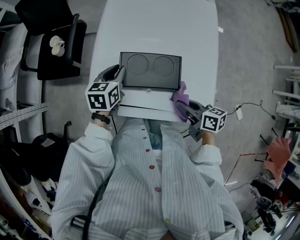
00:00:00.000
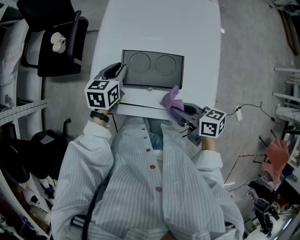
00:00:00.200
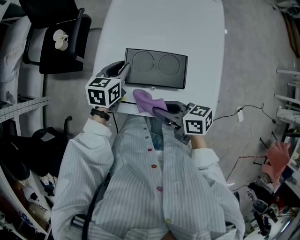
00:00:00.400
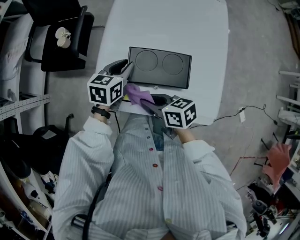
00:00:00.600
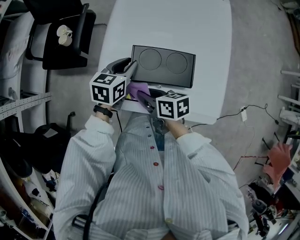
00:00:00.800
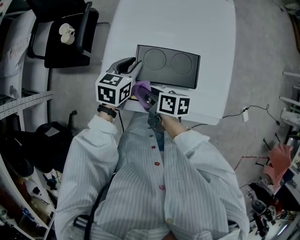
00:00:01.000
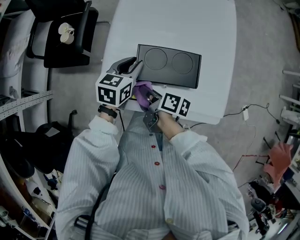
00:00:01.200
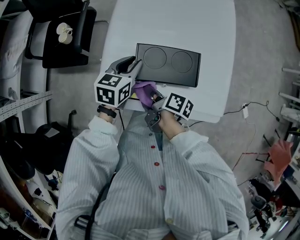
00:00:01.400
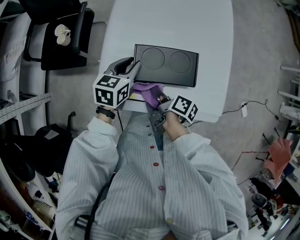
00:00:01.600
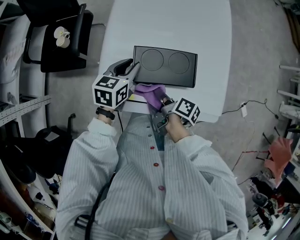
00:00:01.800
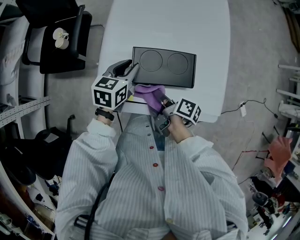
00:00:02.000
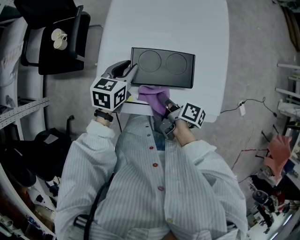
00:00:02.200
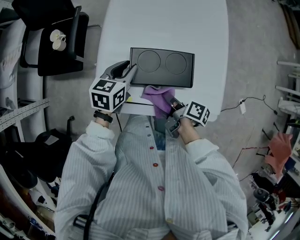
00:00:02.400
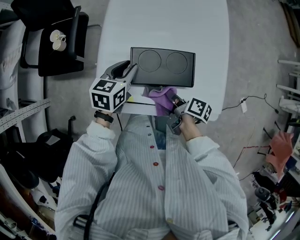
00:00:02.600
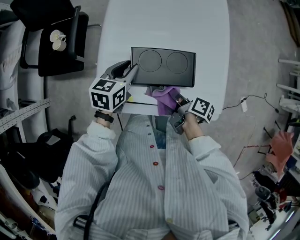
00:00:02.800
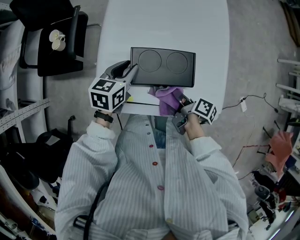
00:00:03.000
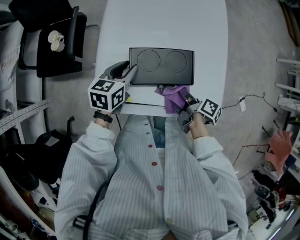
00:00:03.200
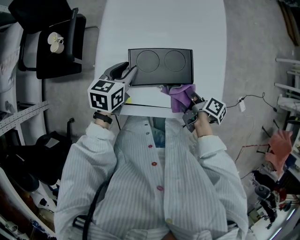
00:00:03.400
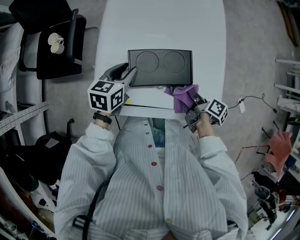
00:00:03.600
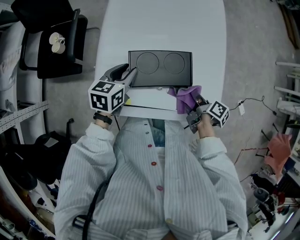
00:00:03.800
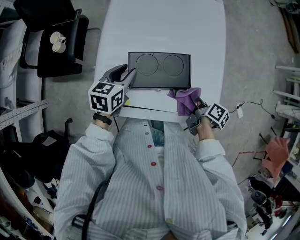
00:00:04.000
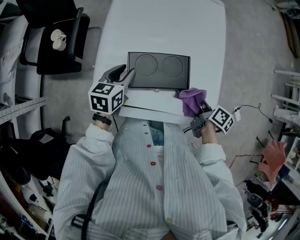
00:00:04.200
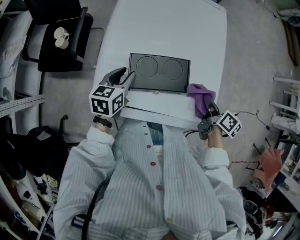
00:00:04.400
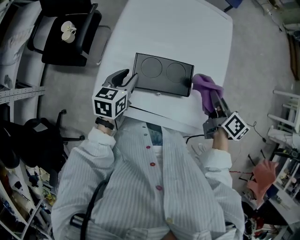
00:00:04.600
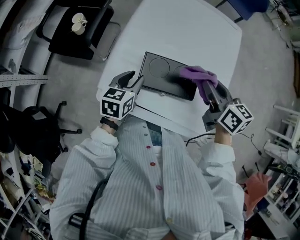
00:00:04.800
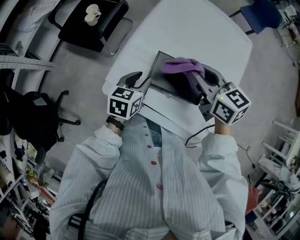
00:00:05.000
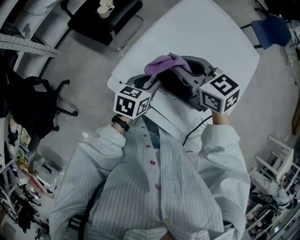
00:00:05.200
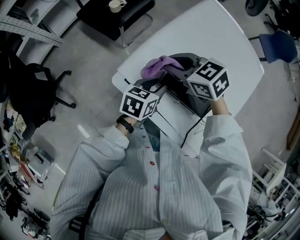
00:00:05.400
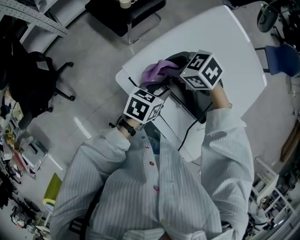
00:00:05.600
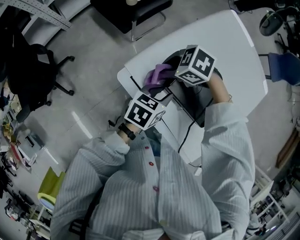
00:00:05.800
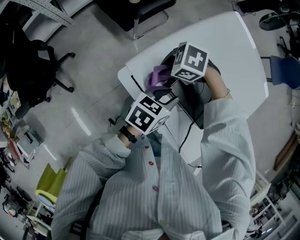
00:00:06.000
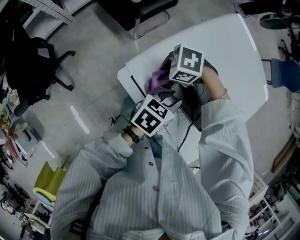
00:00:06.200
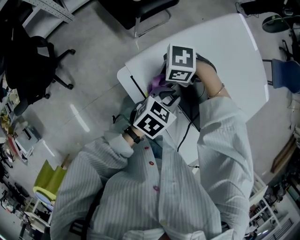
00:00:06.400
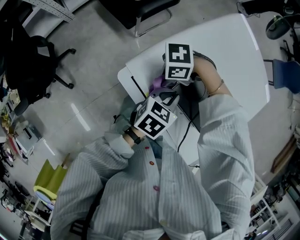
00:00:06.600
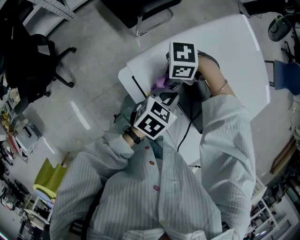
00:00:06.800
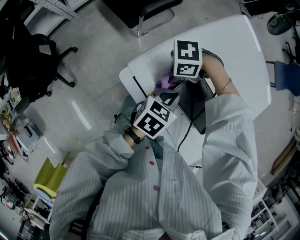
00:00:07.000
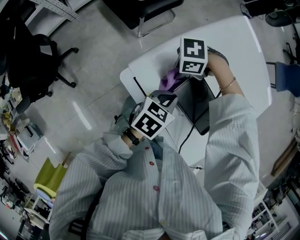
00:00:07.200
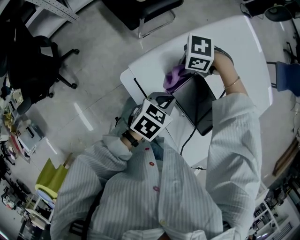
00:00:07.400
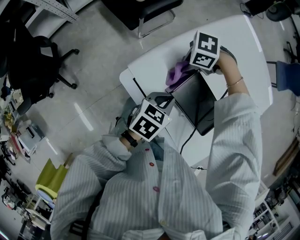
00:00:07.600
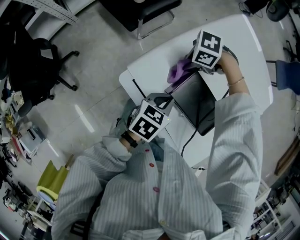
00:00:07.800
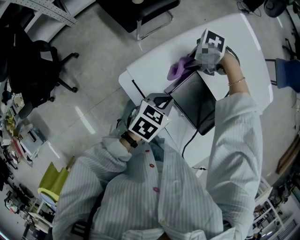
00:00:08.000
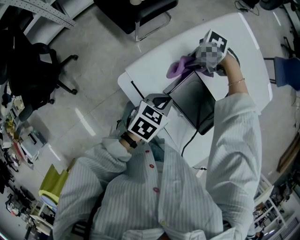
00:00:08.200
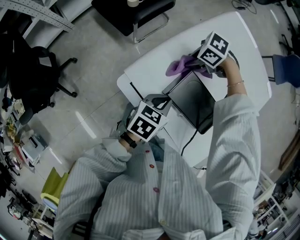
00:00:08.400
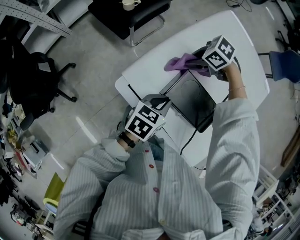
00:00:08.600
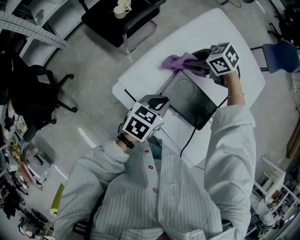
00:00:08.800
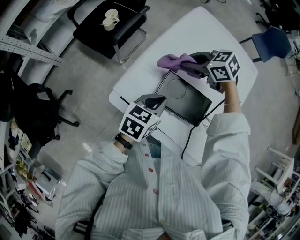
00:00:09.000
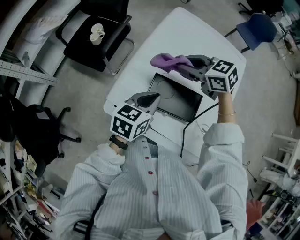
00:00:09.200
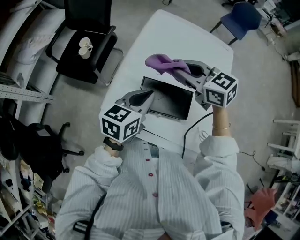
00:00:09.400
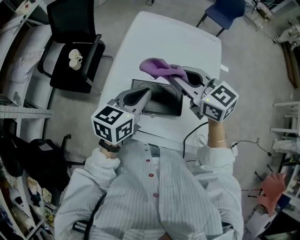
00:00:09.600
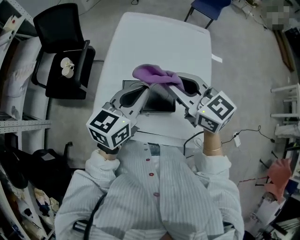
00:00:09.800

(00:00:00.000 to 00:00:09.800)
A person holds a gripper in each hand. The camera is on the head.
00:00:00.000 - 00:00:01.400: The right gripper moves to the left and forward, approximately 20 cm, and turns by approximately 40 degrees.
00:00:01.400 - 00:00:02.800: The right gripper shifts approximately 10 cm to the right.
00:00:02.800 - 00:00:04.200: The right gripper heads to the right, covering about 15 cm.
00:00:04.200 - 00:00:05.600: The right gripper reaches about 15 cm upward, then returns, and changes its angle by approximately 130 degrees, while the left gripper shifts by roughly 5 cm, and rotates roughly 30 degrees.
00:00:05.600 - 00:00:07.000: The left gripper closes; the right gripper is displaced downward by some 5 cm, and swivels about 50 degrees.
00:00:07.000 - 00:00:08.400: The right gripper changes place by about 15 cm, and turns by roughly 30 degrees.
00:00:08.400 - 00:00:09.800: The grippers both shift upward by about 25 cm. The right gripper tilts its fingers some 40 degrees upward, while the left gripper tilts its fingers about 30 degrees upward.

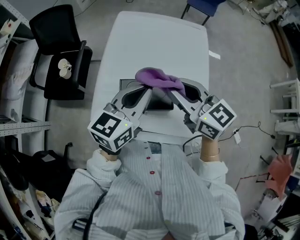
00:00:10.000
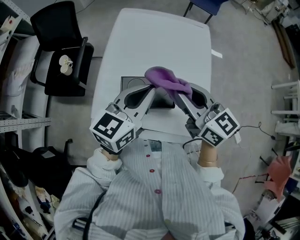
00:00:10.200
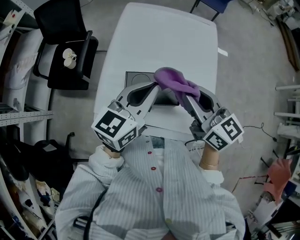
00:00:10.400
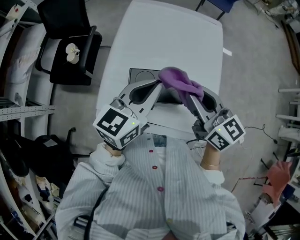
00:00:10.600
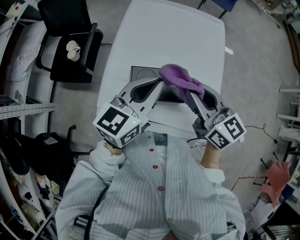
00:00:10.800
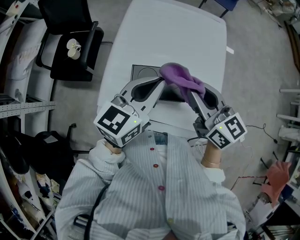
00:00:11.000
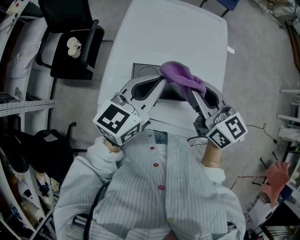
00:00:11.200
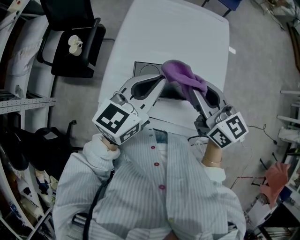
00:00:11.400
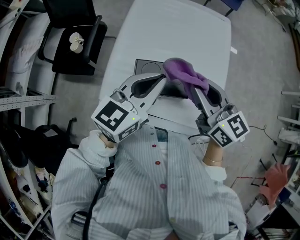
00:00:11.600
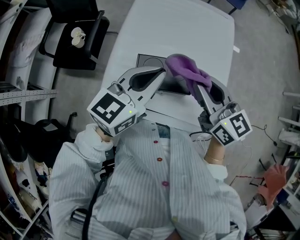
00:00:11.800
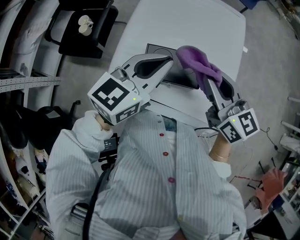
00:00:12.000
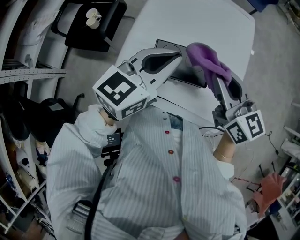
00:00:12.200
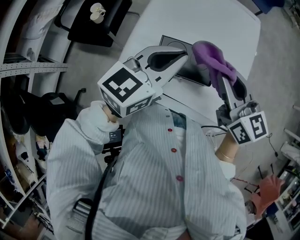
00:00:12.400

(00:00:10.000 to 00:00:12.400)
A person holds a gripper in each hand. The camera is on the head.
00:00:10.000 - 00:00:12.400: The grippers move only a little.

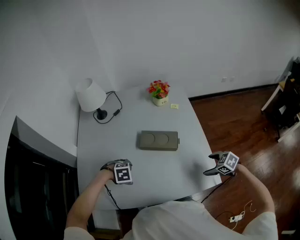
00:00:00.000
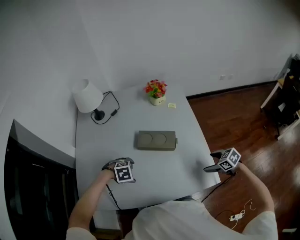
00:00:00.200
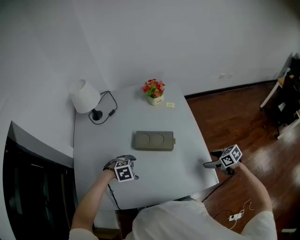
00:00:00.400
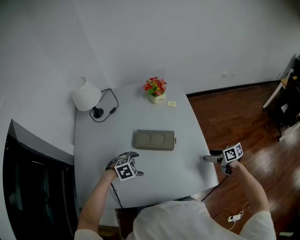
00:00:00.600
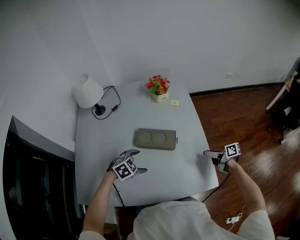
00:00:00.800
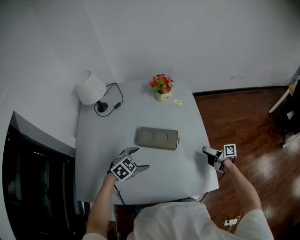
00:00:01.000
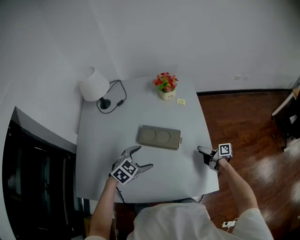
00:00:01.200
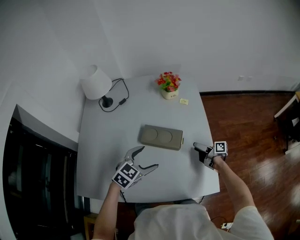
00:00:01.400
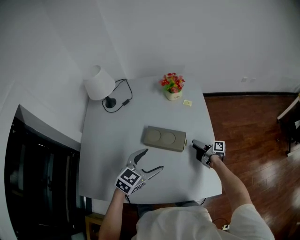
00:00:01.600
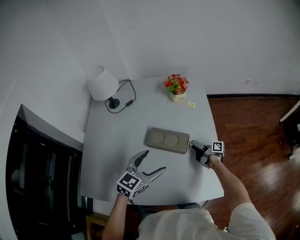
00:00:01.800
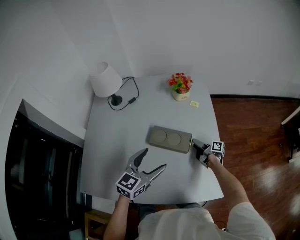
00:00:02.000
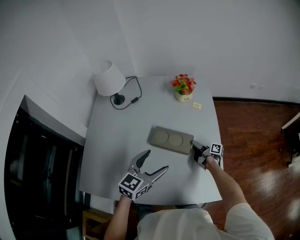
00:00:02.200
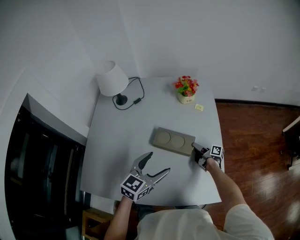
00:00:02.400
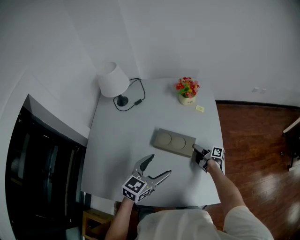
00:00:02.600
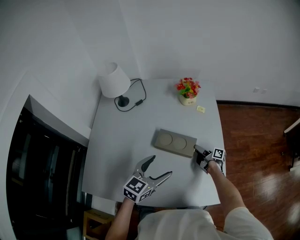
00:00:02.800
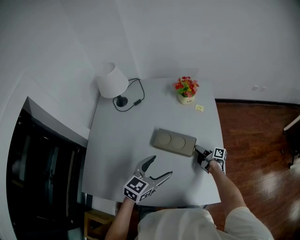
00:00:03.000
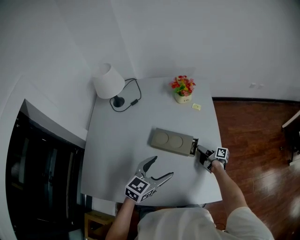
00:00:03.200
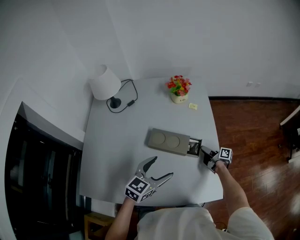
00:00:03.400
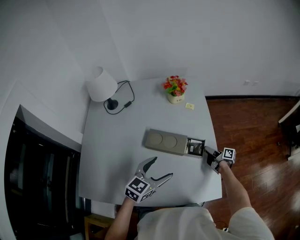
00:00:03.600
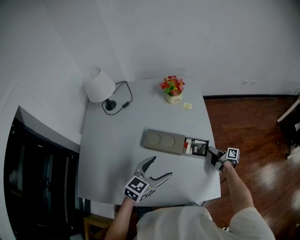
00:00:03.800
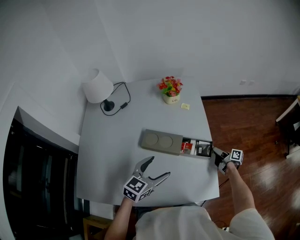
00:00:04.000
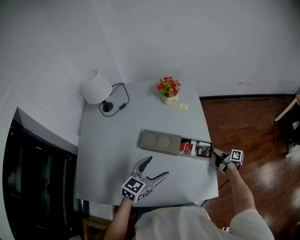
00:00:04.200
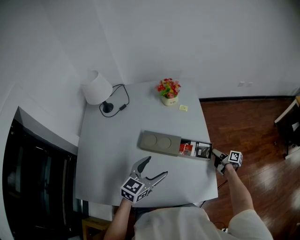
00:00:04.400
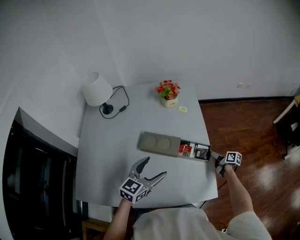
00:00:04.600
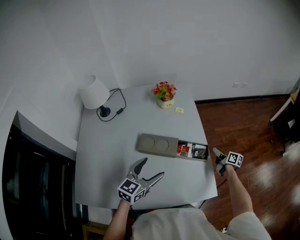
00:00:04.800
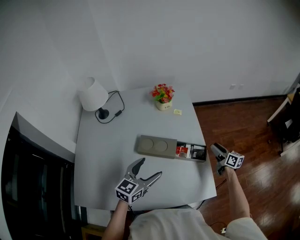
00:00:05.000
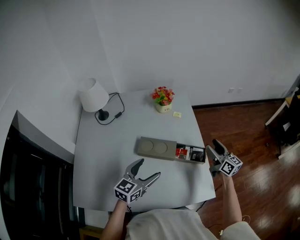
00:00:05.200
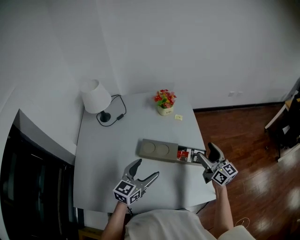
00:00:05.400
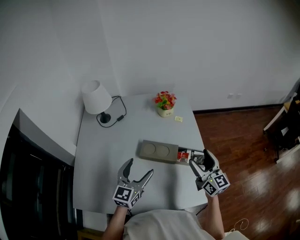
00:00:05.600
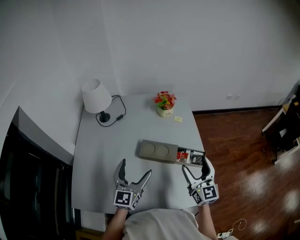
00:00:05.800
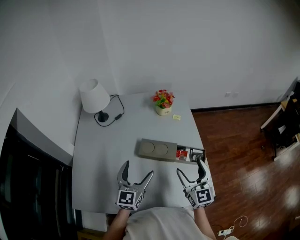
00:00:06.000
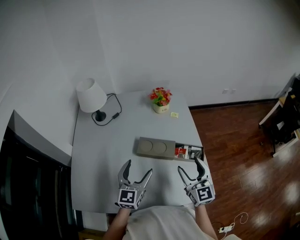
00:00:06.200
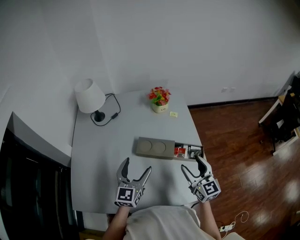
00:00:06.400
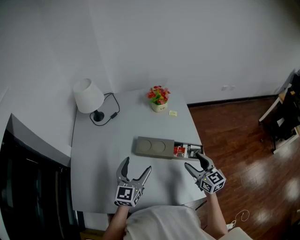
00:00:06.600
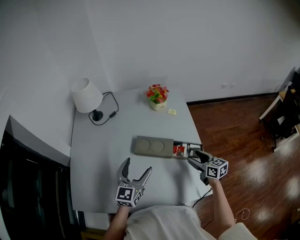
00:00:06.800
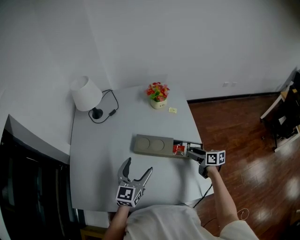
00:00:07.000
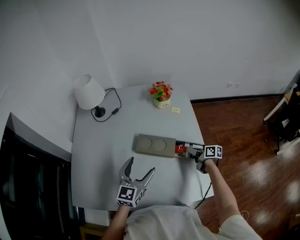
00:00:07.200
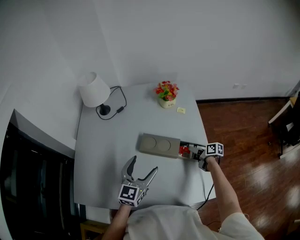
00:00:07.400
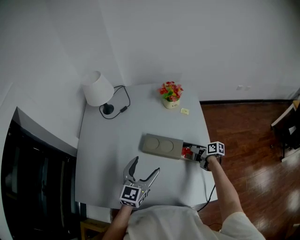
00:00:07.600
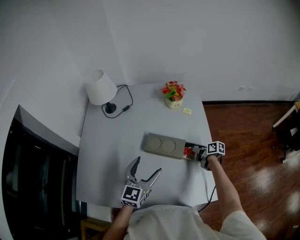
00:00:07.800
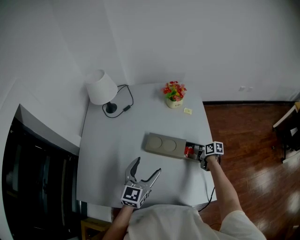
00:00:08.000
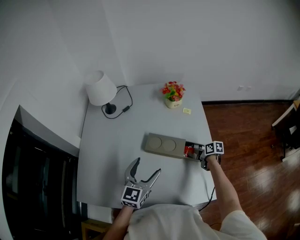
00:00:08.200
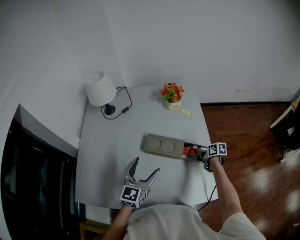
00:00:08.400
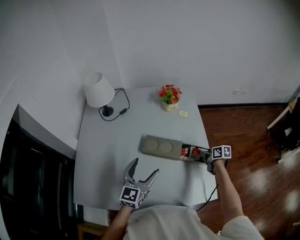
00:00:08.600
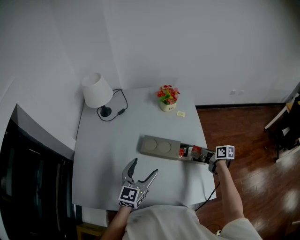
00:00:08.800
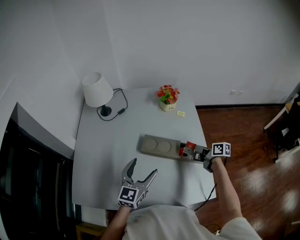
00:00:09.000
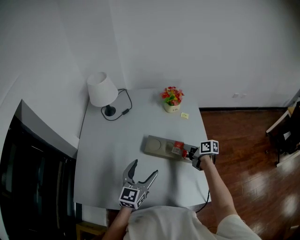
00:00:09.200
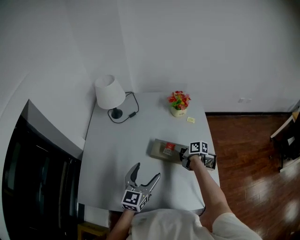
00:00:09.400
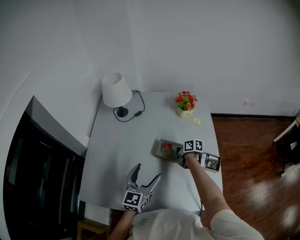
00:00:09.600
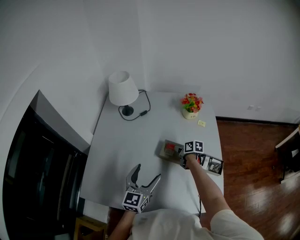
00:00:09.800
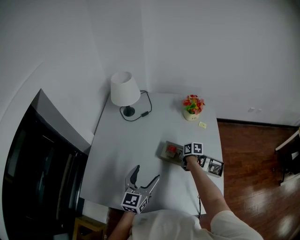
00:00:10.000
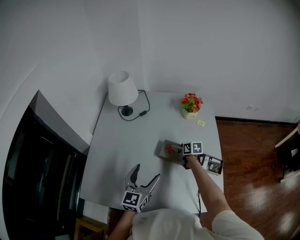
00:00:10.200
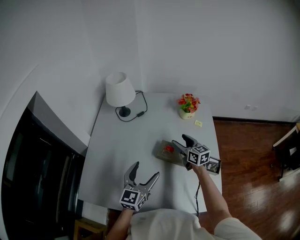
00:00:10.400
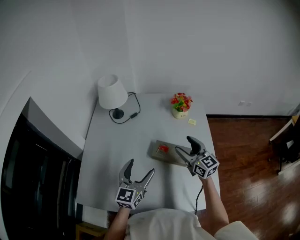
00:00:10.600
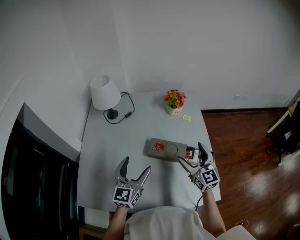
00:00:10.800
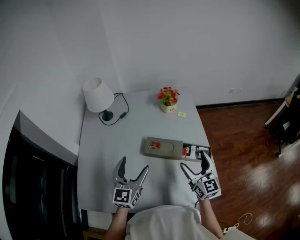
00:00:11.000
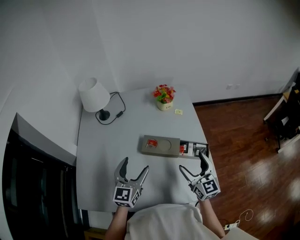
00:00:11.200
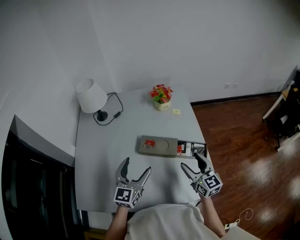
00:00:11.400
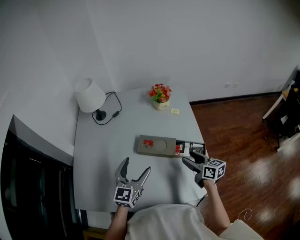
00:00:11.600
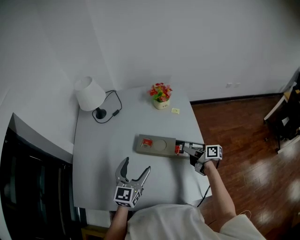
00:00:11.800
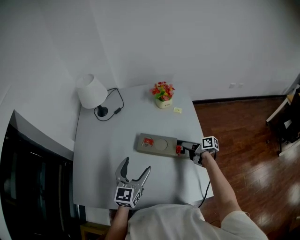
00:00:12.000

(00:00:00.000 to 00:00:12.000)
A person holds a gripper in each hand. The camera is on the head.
00:00:00.000 - 00:00:01.600: The right gripper shifts by roughly 20 cm, and points its fingers about 50 degrees further upward; the left gripper moves approximately 20 cm, and angles its fingers upward, by some 60 degrees.
00:00:01.600 - 00:00:03.000: The right gripper closes its fingers.
00:00:03.000 - 00:00:04.400: The right gripper shifts about 20 cm to the right.
00:00:04.400 - 00:00:06.000: The left gripper goes about 10 cm to the left, and swivels about 30 degrees; the right gripper goes some 40 cm upward, to the left and backward, twists about 70 degrees counterclockwise, seen from behind, and opens its fingers.
00:00:06.000 - 00:00:07.600: The right gripper is displaced downward and forward by some 30 cm, and tilts its fingers approximately 30 degrees downward.
00:00:07.600 - 00:00:09.000: The right gripper travels upward by approximately 10 cm, and closes its fingers.
00:00:09.000 - 00:00:10.400: The right gripper goes about 25 cm to the left and forward, turns by roughly 40 degrees, and opens. Meanwhile the left gripper heads to the left, covering roughly 5 cm.
00:00:10.400 - 00:00:12.000: The right gripper heads to the right, downward and backward, covering some 25 cm, and twists approximately 60 degrees clockwise, seen from behind. The left gripper is displaced to the right by some 5 cm.
